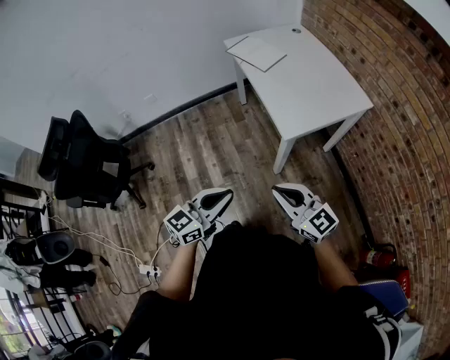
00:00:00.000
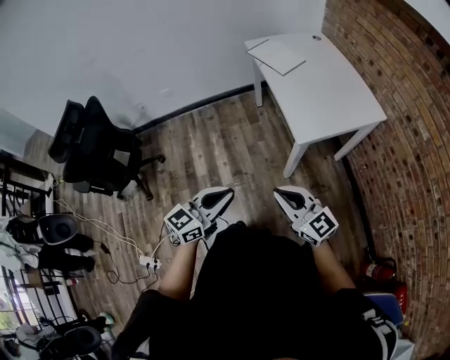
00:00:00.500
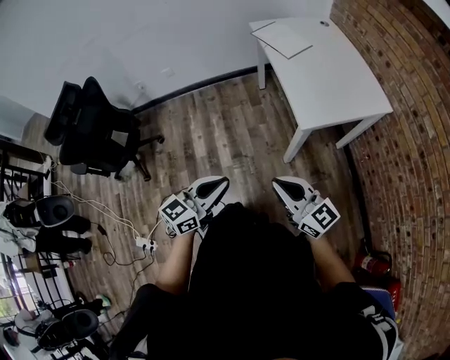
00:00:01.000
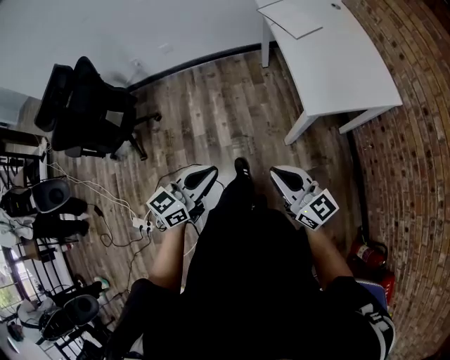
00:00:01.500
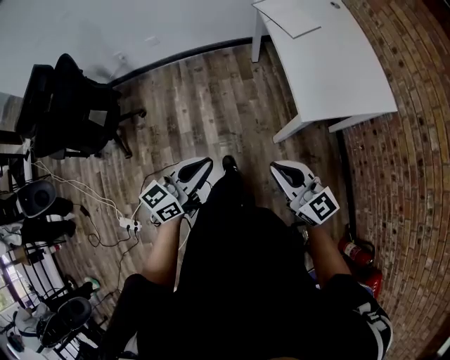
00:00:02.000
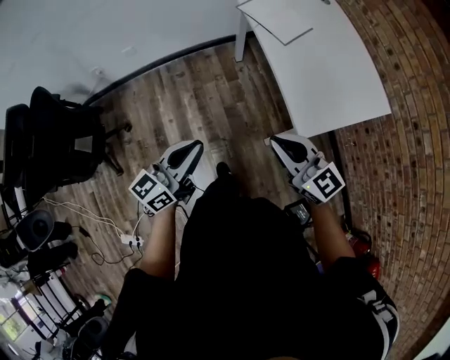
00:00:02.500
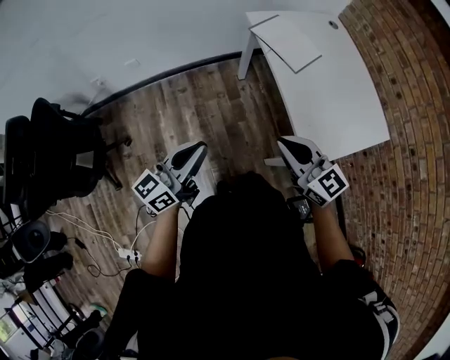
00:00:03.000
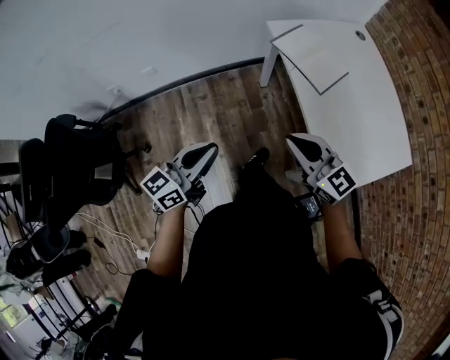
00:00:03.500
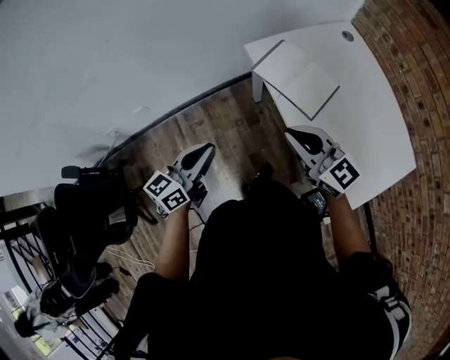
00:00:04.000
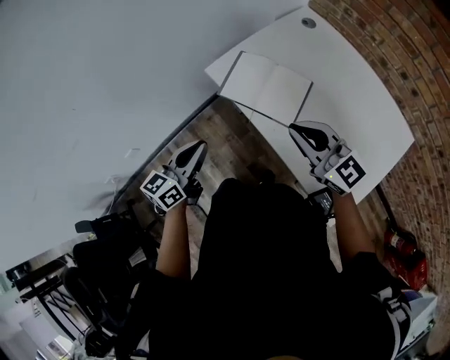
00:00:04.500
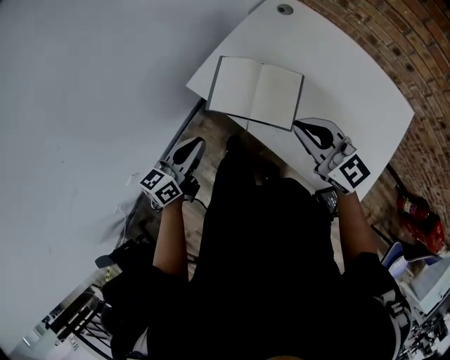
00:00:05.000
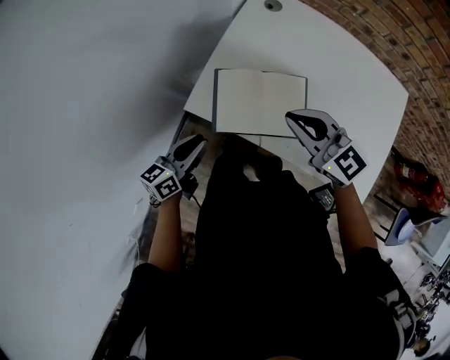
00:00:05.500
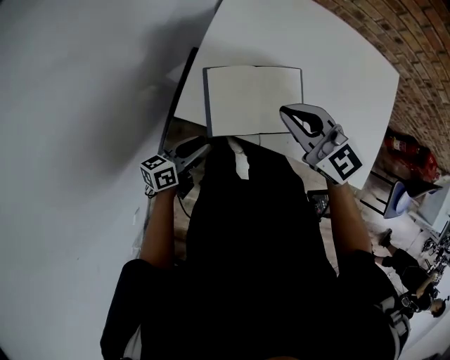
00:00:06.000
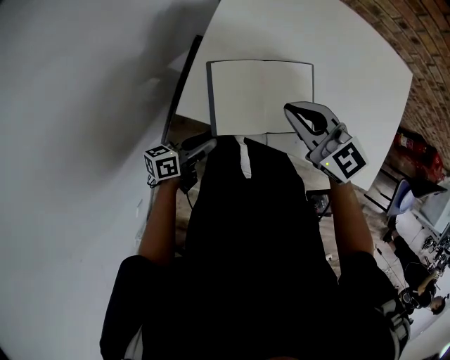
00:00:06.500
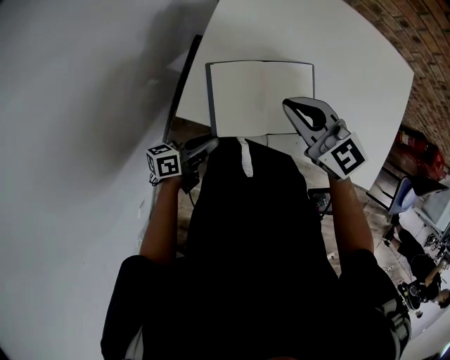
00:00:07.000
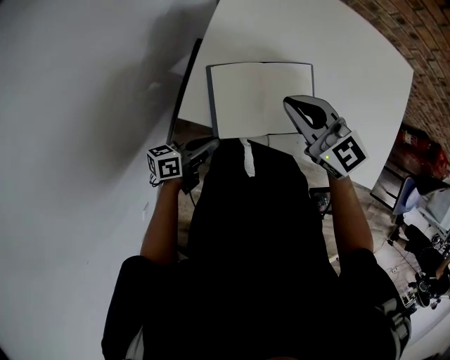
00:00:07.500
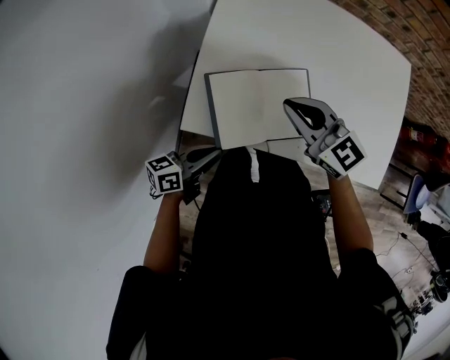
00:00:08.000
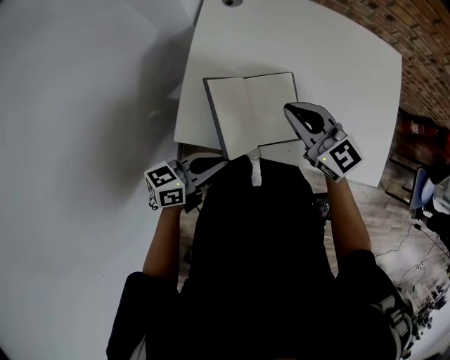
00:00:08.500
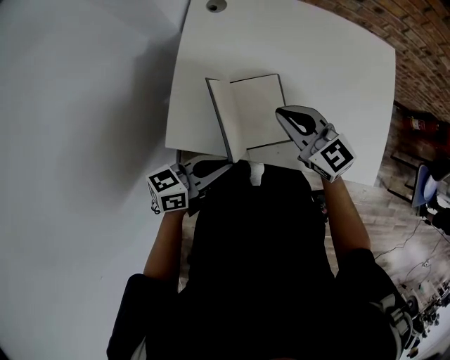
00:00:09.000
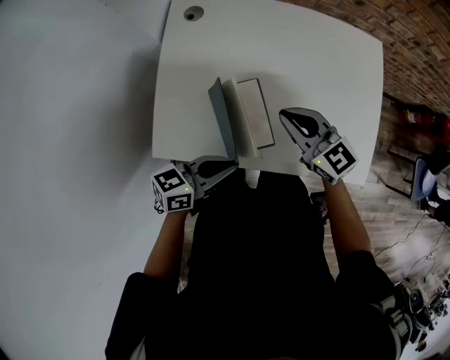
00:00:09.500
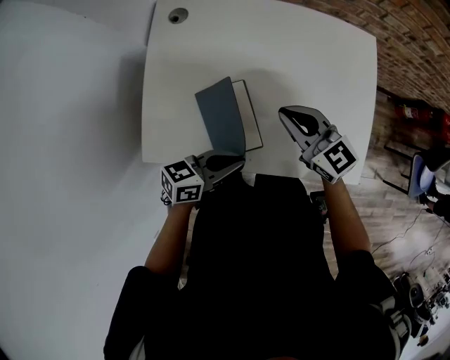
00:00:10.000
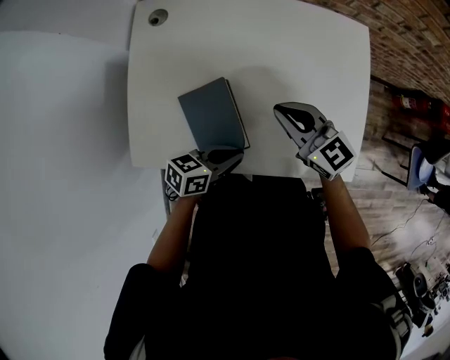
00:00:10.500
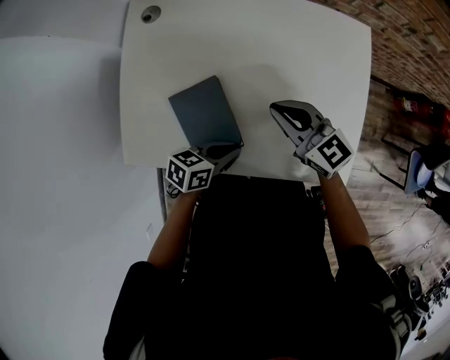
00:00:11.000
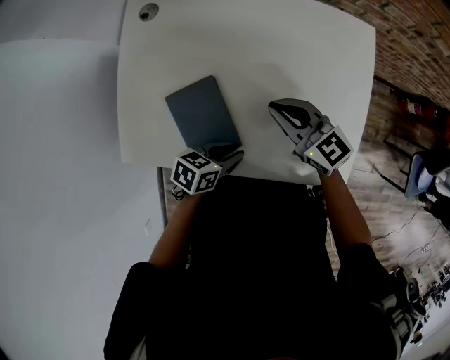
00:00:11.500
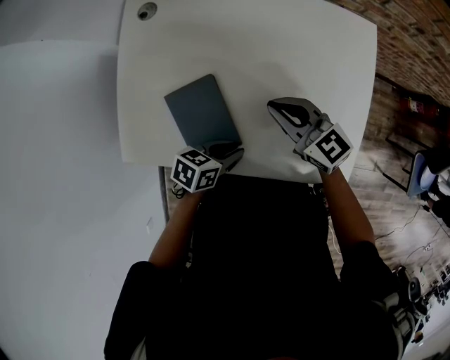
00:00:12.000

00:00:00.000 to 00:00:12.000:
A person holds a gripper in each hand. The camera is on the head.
00:00:00.000 to 00:00:02.000: The right gripper shifts roughly 5 cm forward; the left gripper travels to the left and forward by roughly 10 cm.
00:00:02.000 to 00:00:04.000: The two grippers travel together, forward, some 50 cm.
00:00:04.000 to 00:00:06.000: The right gripper moves some 25 cm, and swivels about 40 degrees; the left gripper shifts by about 35 cm, turns by some 60 degrees, and opens up.
00:00:06.000 to 00:00:08.000: The left gripper closes its fingers.
00:00:08.000 to 00:00:10.000: The left gripper goes approximately 25 cm to the right and forward, and changes its angle by approximately 20 degrees. The right gripper travels to the right by roughly 20 cm.
00:00:10.000 to 00:00:12.000: The left gripper moves downward, approximately 10 cm, and rotates roughly 30 degrees; the right gripper moves approximately 5 cm.

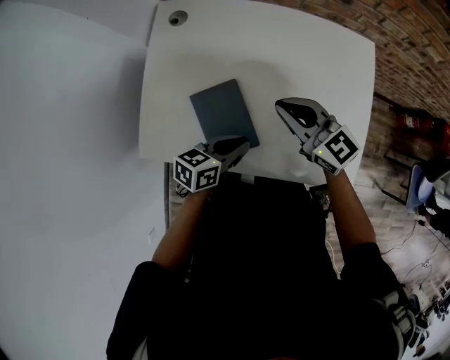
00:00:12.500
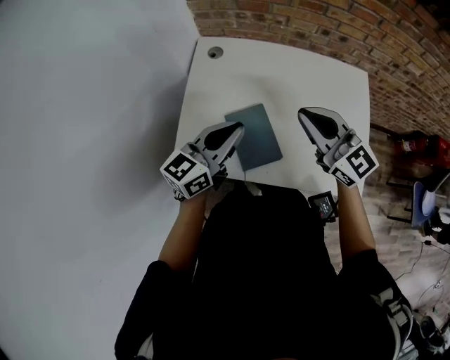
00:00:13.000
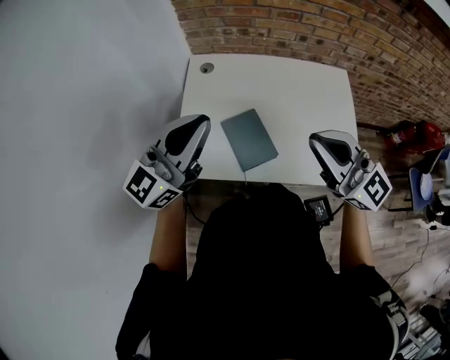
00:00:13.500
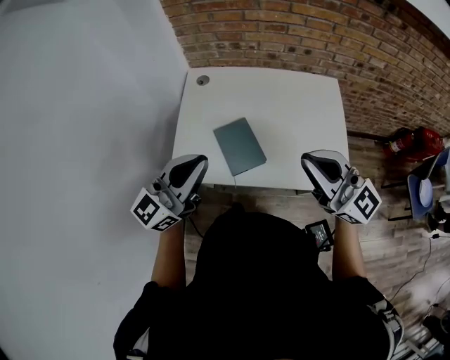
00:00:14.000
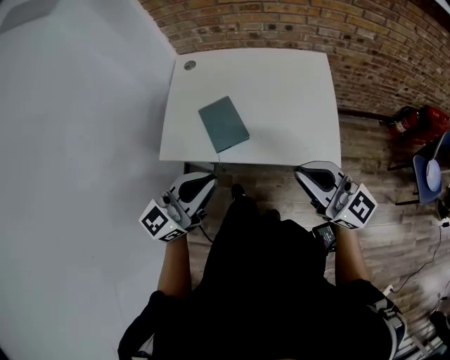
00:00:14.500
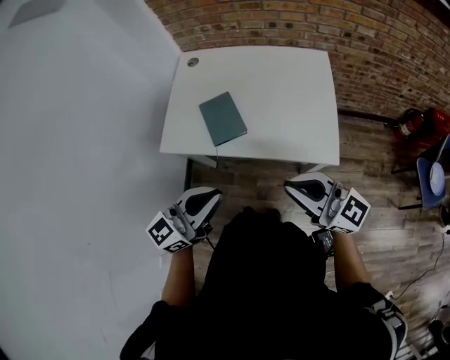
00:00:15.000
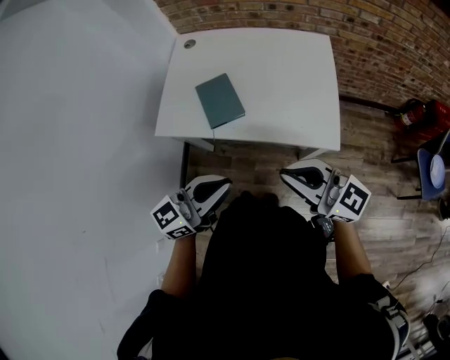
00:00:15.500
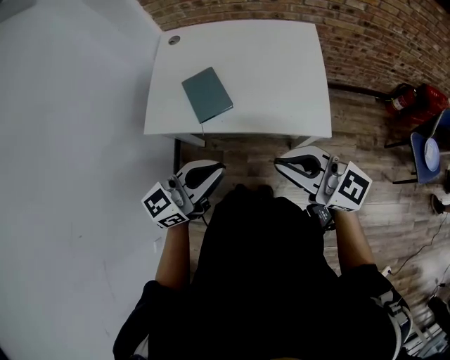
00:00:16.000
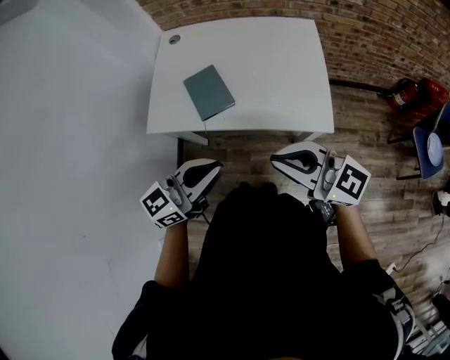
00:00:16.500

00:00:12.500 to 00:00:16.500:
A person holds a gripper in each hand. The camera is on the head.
00:00:12.500 to 00:00:14.500: The left gripper moves upward and backward, roughly 35 cm, and tips its fingers upward by about 30 degrees. The right gripper heads backward and upward, covering roughly 35 cm, and changes its angle by roughly 20 degrees.
00:00:14.500 to 00:00:16.500: The right gripper is displaced backward by roughly 5 cm. Meanwhile the left gripper heads backward and to the right, covering some 10 cm.

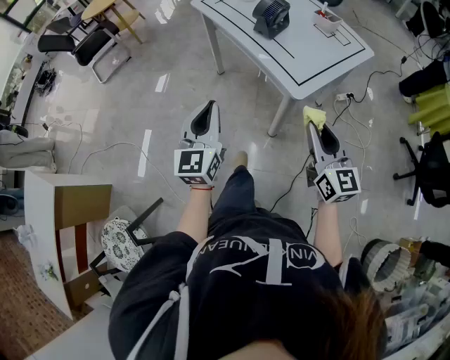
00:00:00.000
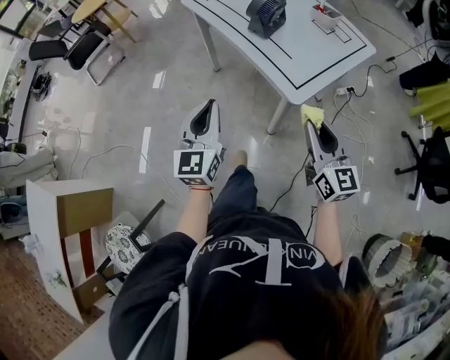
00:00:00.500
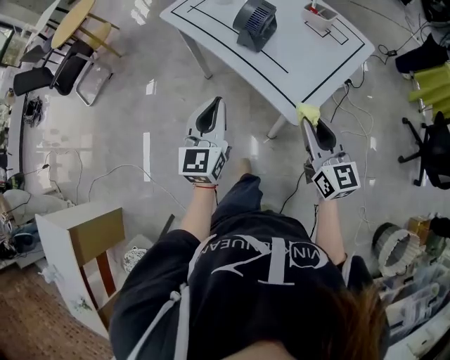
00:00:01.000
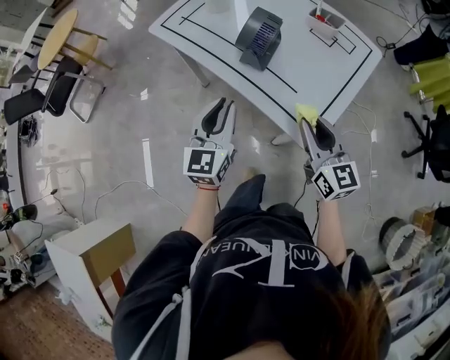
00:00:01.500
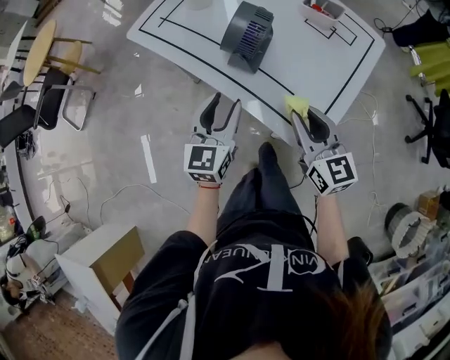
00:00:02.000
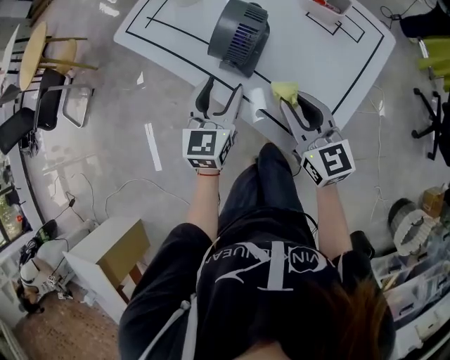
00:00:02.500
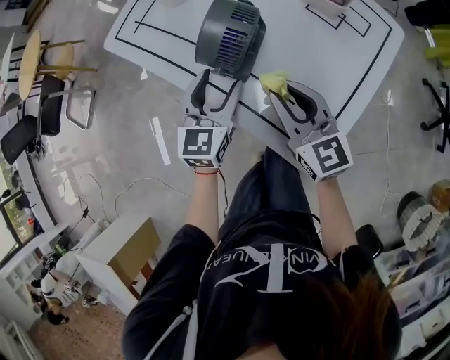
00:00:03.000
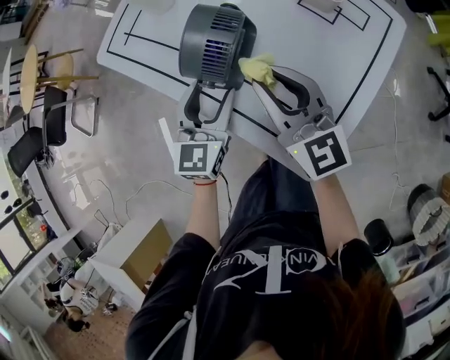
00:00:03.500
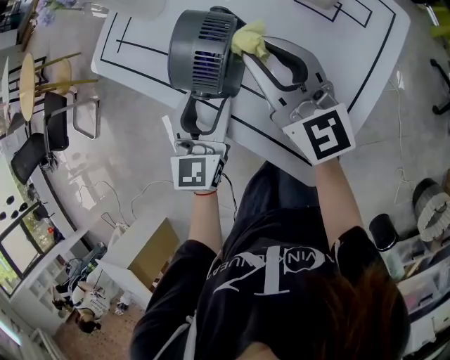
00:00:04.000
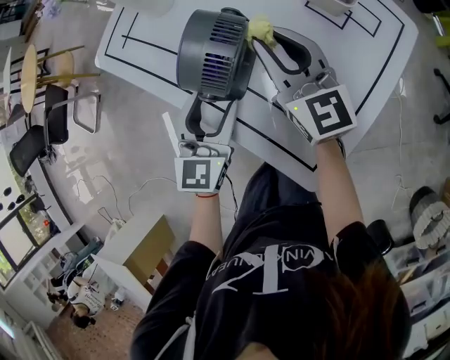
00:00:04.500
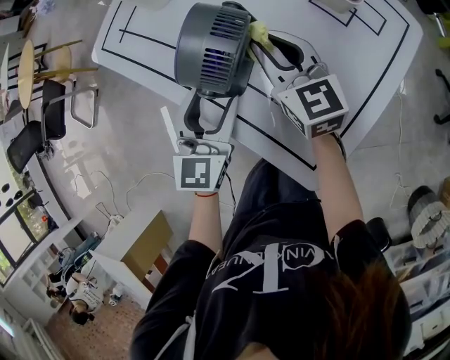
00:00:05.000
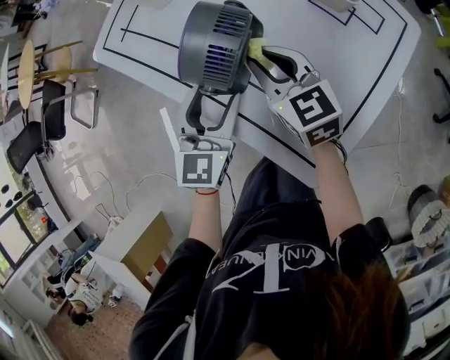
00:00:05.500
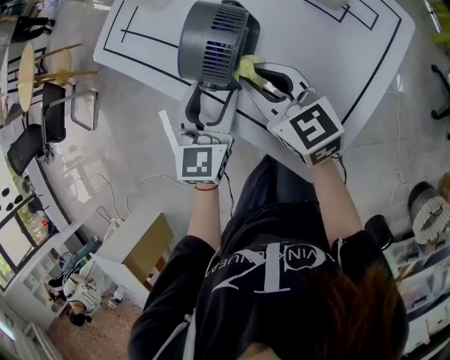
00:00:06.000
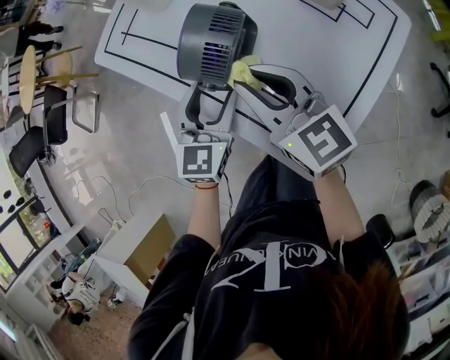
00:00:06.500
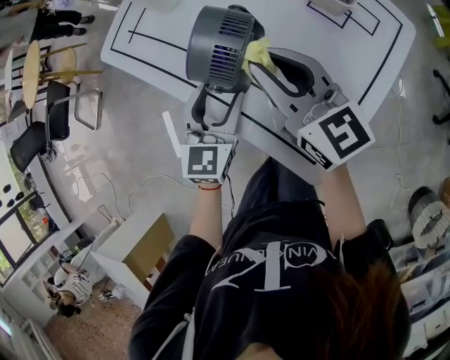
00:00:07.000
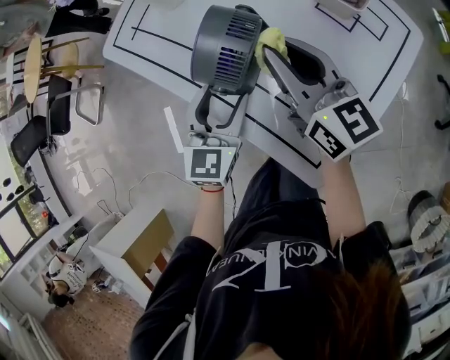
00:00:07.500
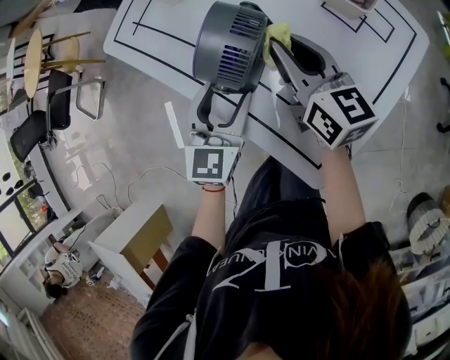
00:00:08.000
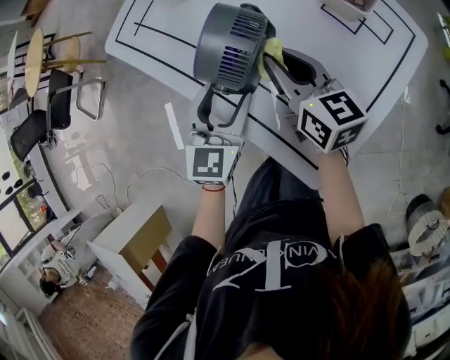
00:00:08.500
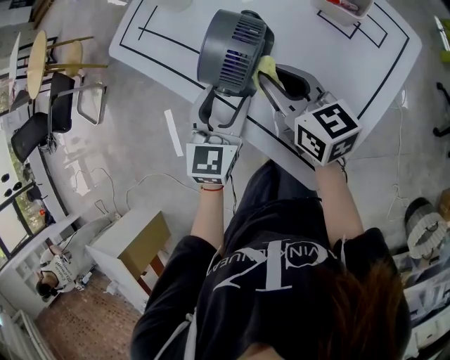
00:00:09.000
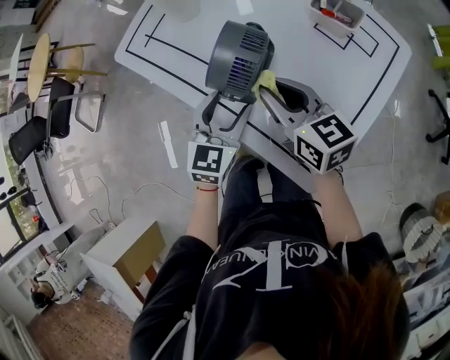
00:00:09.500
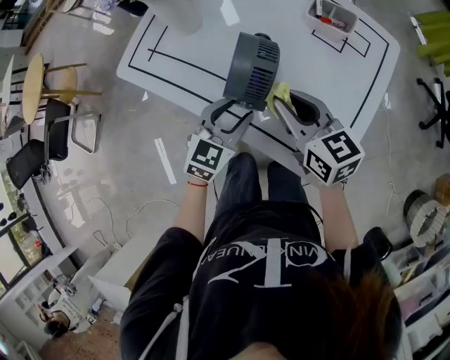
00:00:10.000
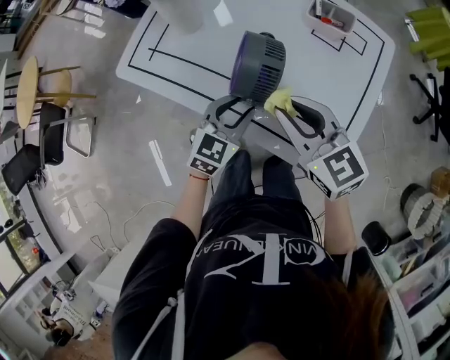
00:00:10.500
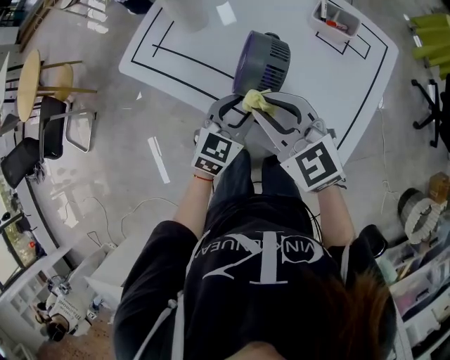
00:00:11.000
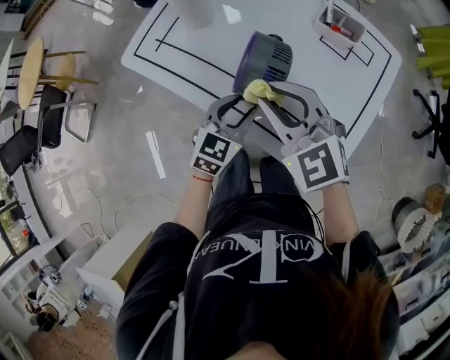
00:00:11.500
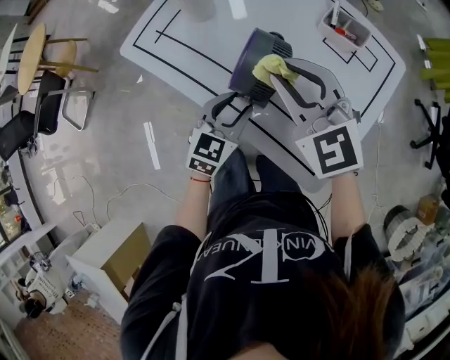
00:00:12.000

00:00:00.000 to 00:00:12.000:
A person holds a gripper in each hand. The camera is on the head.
00:00:00.000 to 00:00:02.000: The grippers both shift forward by roughly 30 cm. The left gripper changes its angle by roughly 30 degrees, and opens its fingers.
00:00:02.000 to 00:00:04.000: The right gripper travels forward by some 20 cm, while the left gripper heads forward, covering some 10 cm.
00:00:04.000 to 00:00:06.000: The right gripper heads downward, covering about 5 cm, and rotates roughly 30 degrees.
00:00:06.000 to 00:00:08.000: The right gripper moves forward and to the right, about 10 cm, travels upward and back again, some 10 cm each way, and rotates some 20 degrees.
00:00:08.000 to 00:00:10.000: The right gripper travels backward by some 5 cm. The left gripper changes its angle by some 30 degrees.
00:00:10.000 to 00:00:12.000: The right gripper travels upward by some 10 cm, and rolls counterclockwise, seen from behind, by roughly 40 degrees.
